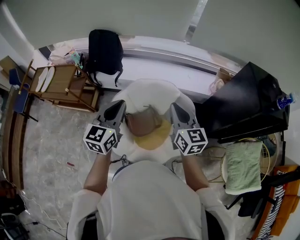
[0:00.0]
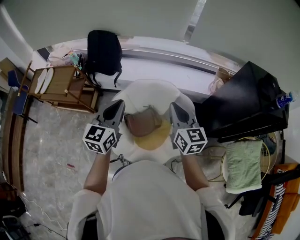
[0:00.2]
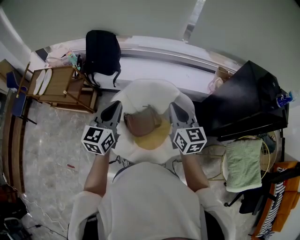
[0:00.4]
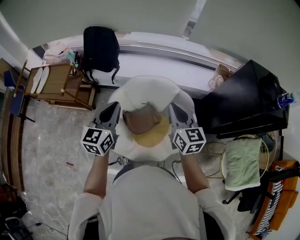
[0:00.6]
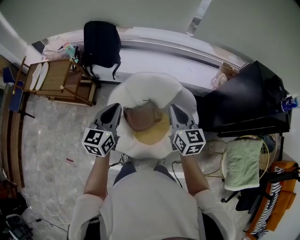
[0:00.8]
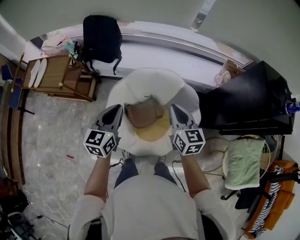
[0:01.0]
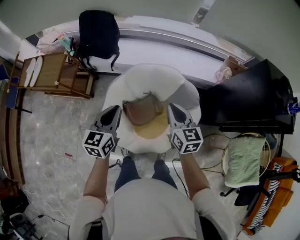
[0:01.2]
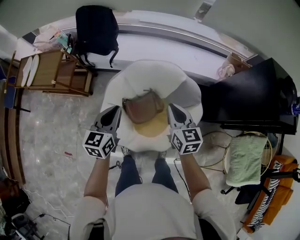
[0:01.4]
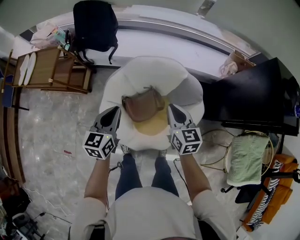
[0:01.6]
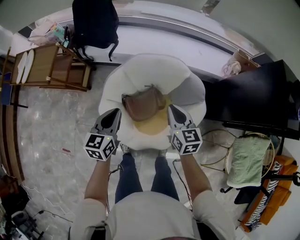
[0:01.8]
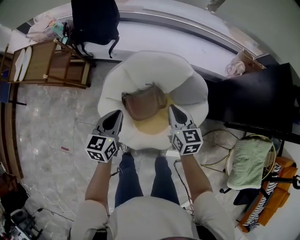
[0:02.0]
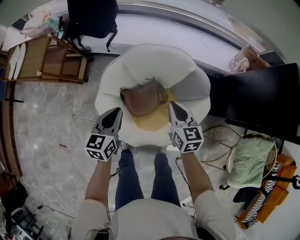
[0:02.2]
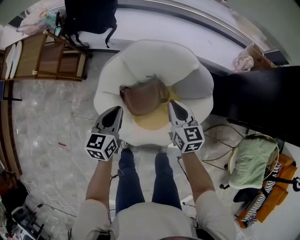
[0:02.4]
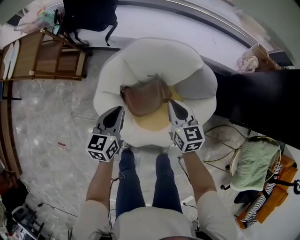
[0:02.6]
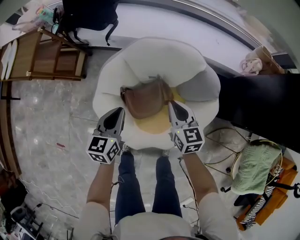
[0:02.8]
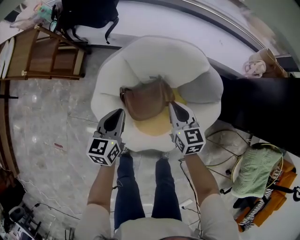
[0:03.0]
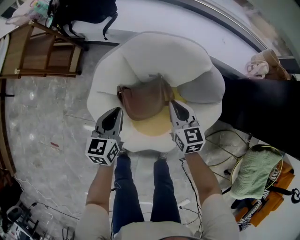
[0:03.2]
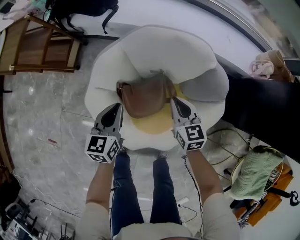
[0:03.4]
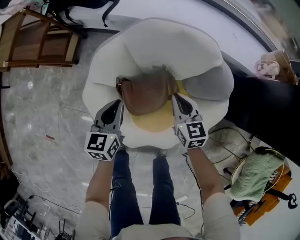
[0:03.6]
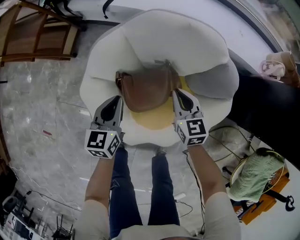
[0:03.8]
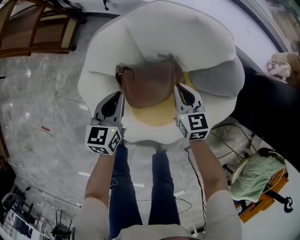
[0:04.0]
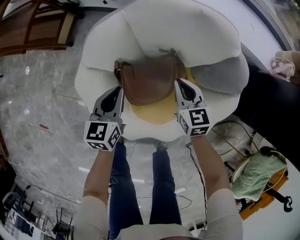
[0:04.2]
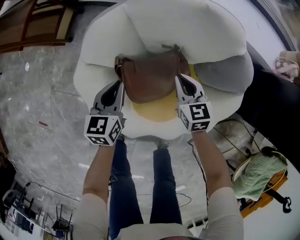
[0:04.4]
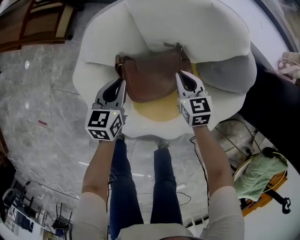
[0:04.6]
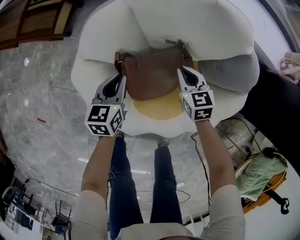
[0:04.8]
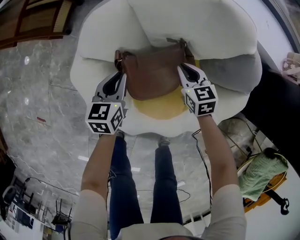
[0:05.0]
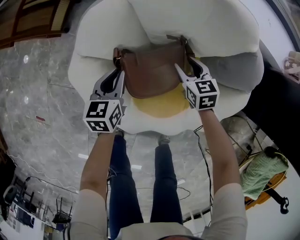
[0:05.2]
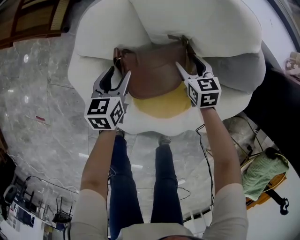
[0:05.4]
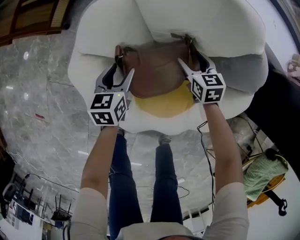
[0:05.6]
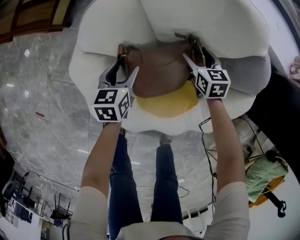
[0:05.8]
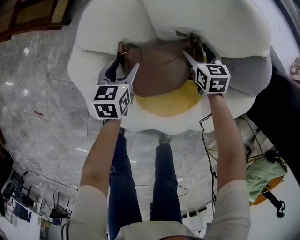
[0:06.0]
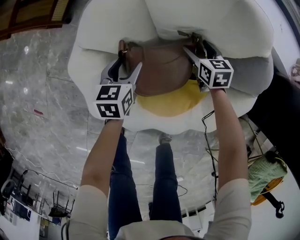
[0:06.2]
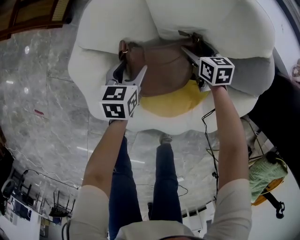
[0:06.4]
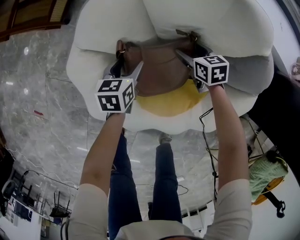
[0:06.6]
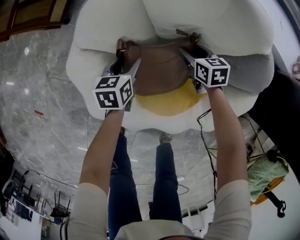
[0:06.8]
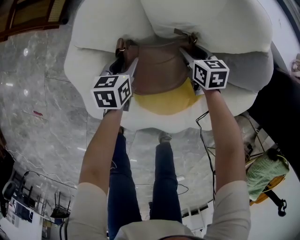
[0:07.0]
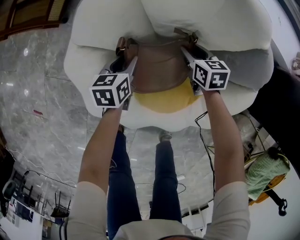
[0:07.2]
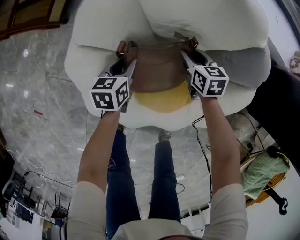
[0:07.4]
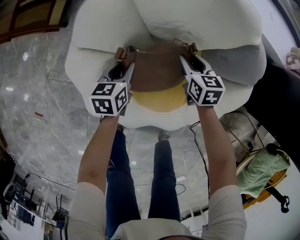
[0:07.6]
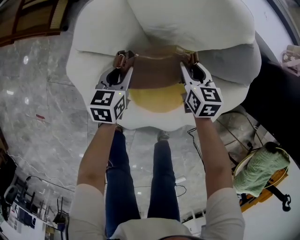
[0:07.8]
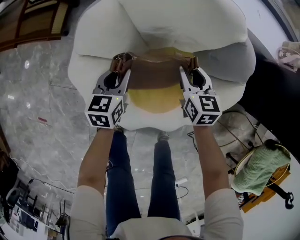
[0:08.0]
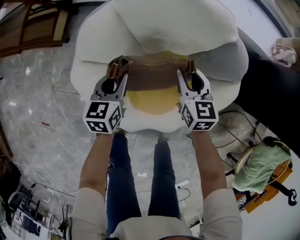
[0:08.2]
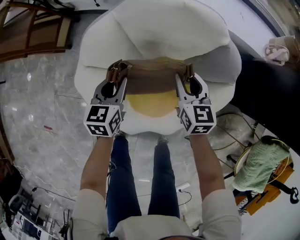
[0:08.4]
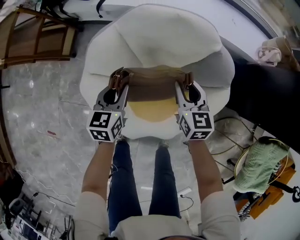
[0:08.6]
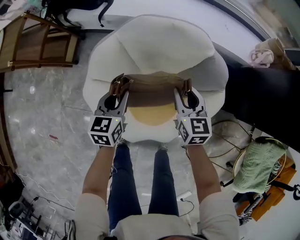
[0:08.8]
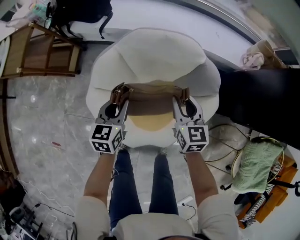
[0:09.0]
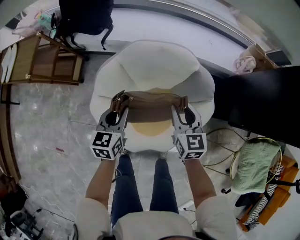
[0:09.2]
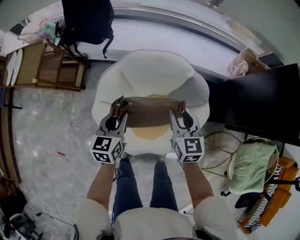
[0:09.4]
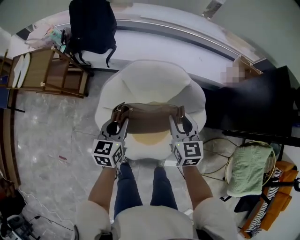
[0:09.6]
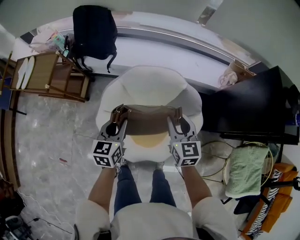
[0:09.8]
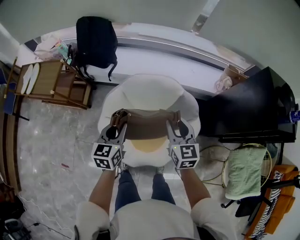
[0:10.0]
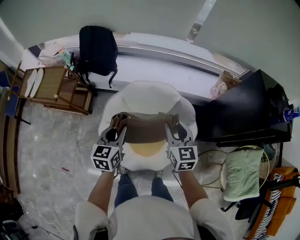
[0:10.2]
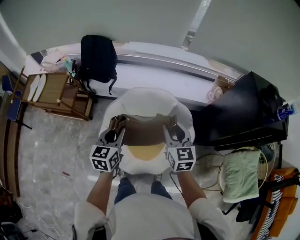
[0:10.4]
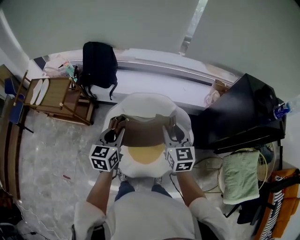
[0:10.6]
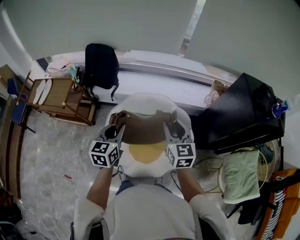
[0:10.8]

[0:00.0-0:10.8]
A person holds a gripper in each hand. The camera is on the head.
0:00.0 to 0:01.6: The two grippers go some 20 cm downward.
0:01.6 to 0:03.0: The two grippers go some 20 cm downward.
0:03.0 to 0:04.6: The grippers both shift downward by approximately 25 cm.
0:04.6 to 0:06.2: The left gripper heads downward, covering approximately 10 cm, and opens up. The right gripper goes some 15 cm downward and forward, and opens its fingers.
0:06.2 to 0:07.8: The left gripper ends up about 5 cm from where it was, and closes up. Meanwhile the right gripper heads upward and backward, covering approximately 10 cm, and closes.
0:07.8 to 0:09.2: The grippers both shift upward by roughly 30 cm. The right gripper rotates about 20 degrees.
0:09.2 to 0:10.8: The two grippers go about 30 cm upward.

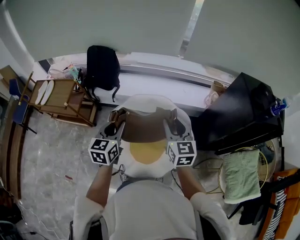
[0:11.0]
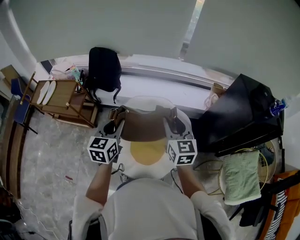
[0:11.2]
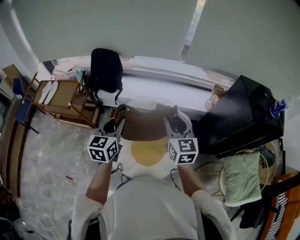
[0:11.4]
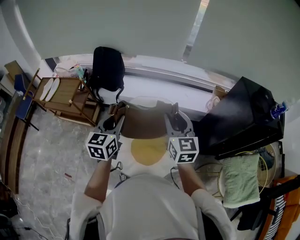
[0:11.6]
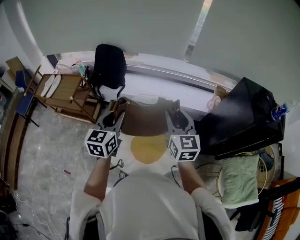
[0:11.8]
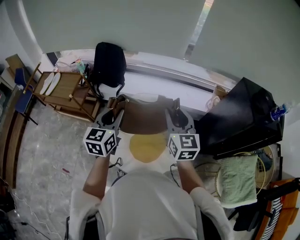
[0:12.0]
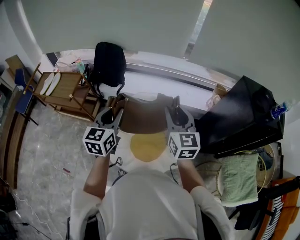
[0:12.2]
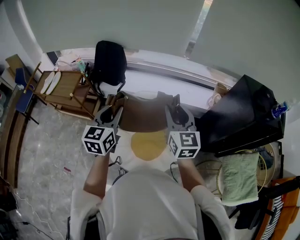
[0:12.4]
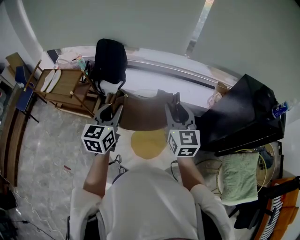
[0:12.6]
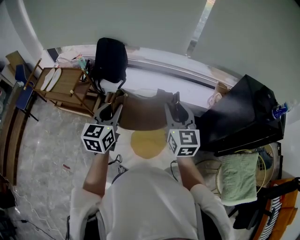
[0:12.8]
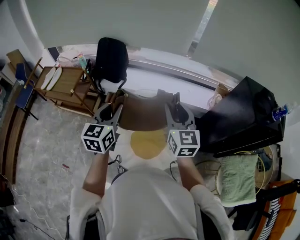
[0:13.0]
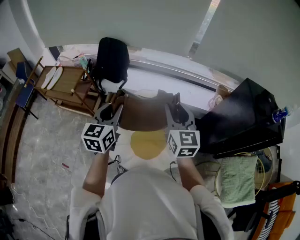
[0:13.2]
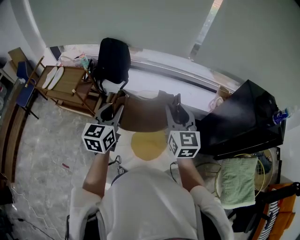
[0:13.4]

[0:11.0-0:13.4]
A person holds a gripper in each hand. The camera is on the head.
0:11.0 to 0:12.2: Both grippers move upward, approximately 5 cm.
0:12.2 to 0:13.4: The grippers stay close to where they were, moving slightly.

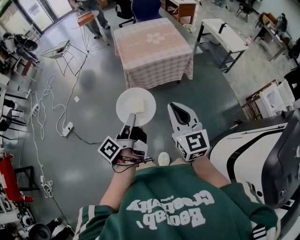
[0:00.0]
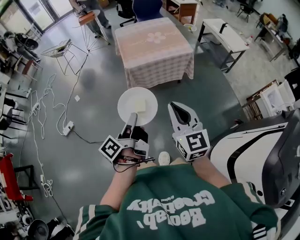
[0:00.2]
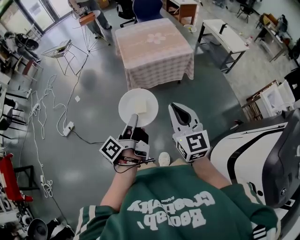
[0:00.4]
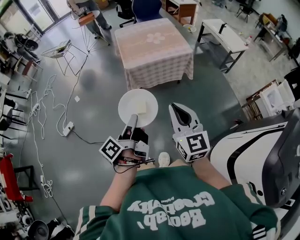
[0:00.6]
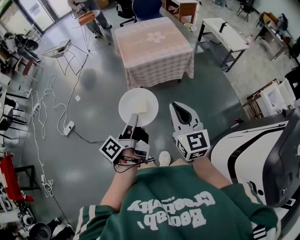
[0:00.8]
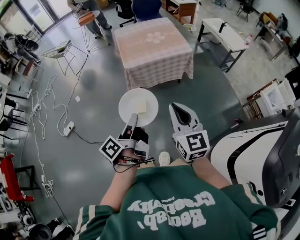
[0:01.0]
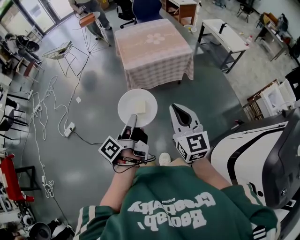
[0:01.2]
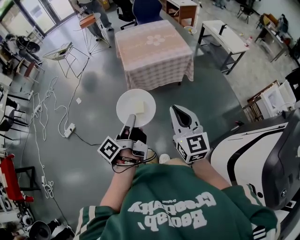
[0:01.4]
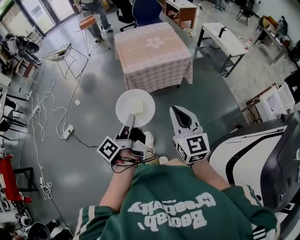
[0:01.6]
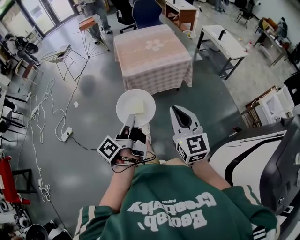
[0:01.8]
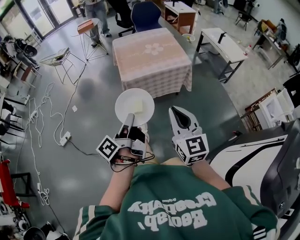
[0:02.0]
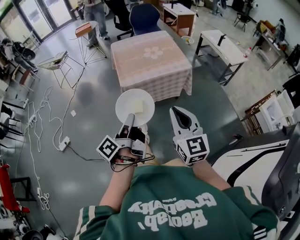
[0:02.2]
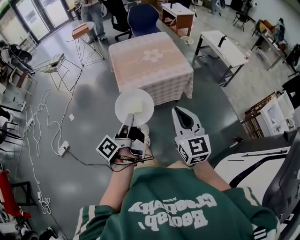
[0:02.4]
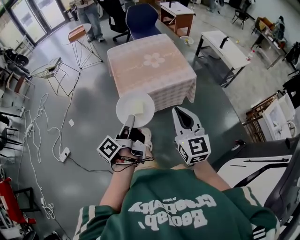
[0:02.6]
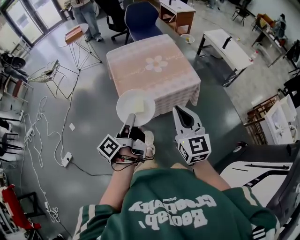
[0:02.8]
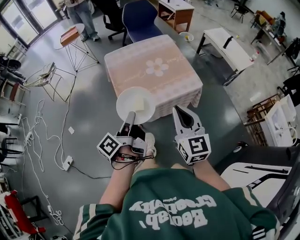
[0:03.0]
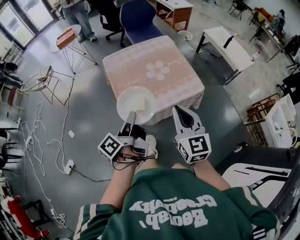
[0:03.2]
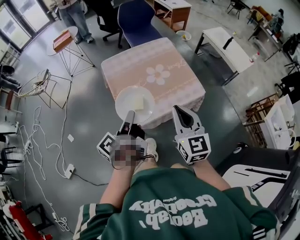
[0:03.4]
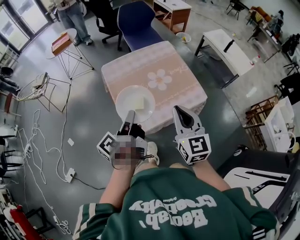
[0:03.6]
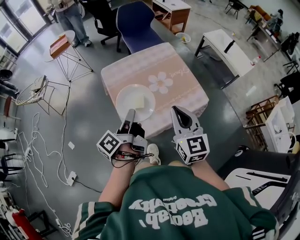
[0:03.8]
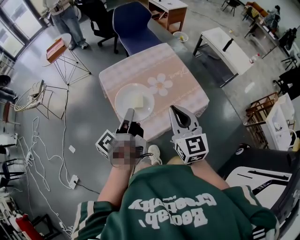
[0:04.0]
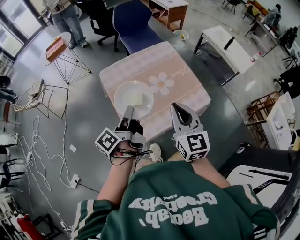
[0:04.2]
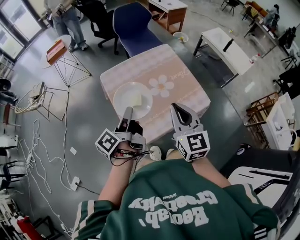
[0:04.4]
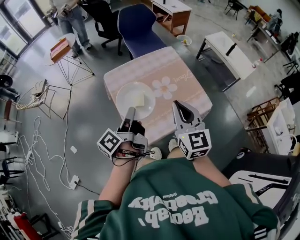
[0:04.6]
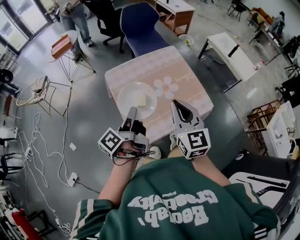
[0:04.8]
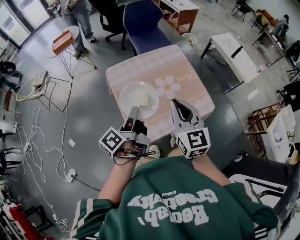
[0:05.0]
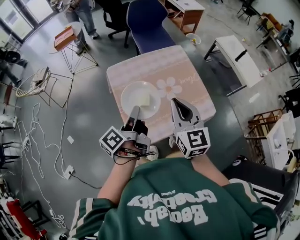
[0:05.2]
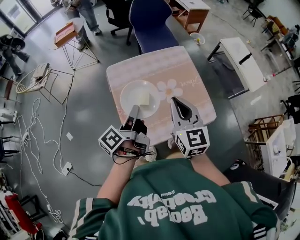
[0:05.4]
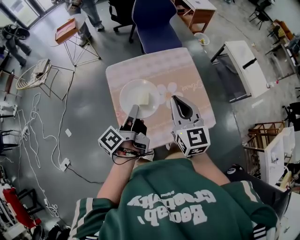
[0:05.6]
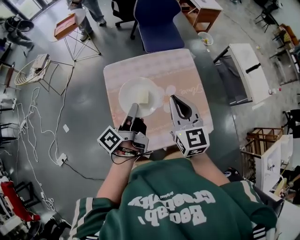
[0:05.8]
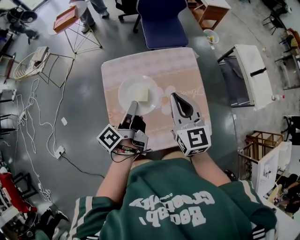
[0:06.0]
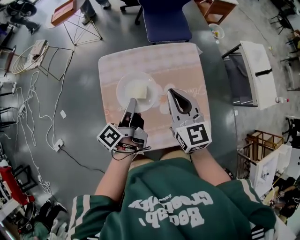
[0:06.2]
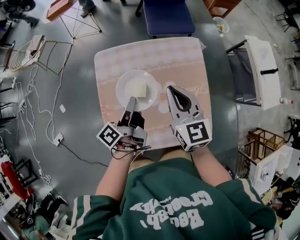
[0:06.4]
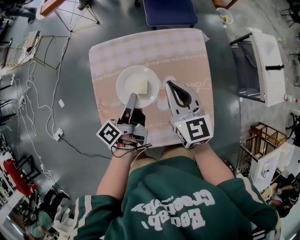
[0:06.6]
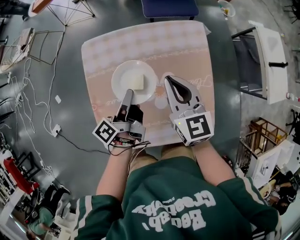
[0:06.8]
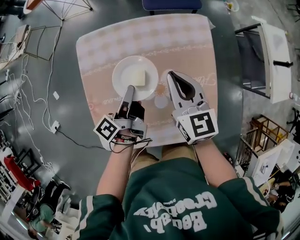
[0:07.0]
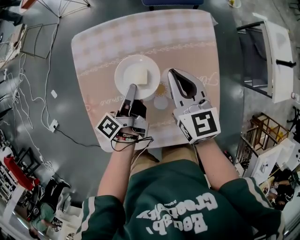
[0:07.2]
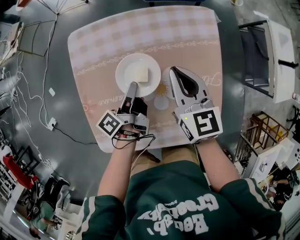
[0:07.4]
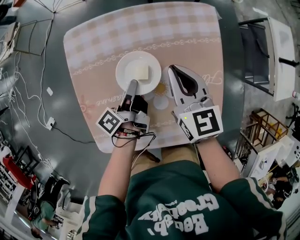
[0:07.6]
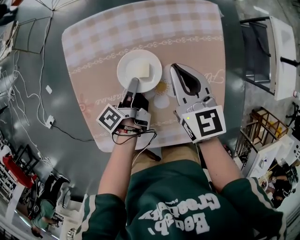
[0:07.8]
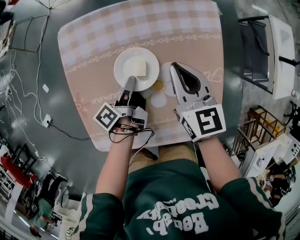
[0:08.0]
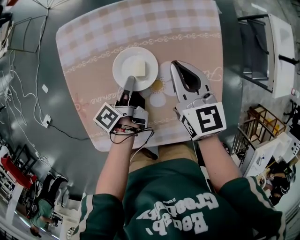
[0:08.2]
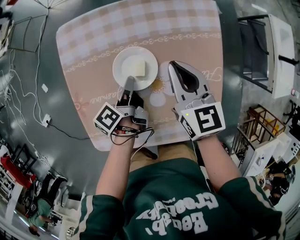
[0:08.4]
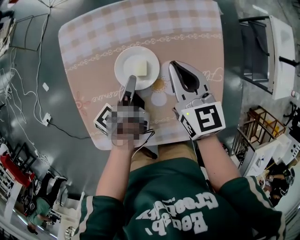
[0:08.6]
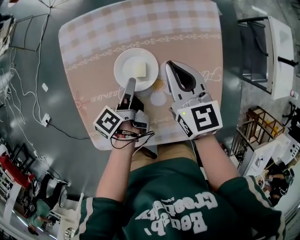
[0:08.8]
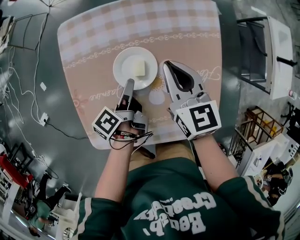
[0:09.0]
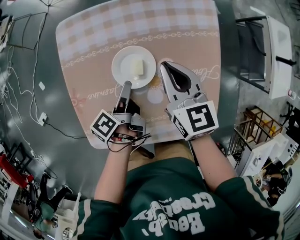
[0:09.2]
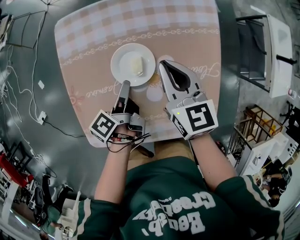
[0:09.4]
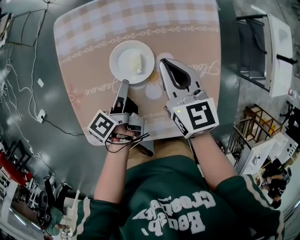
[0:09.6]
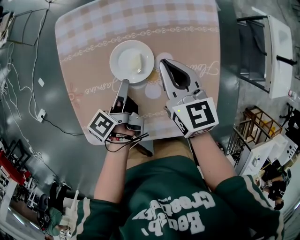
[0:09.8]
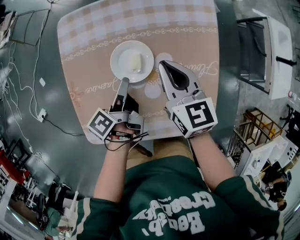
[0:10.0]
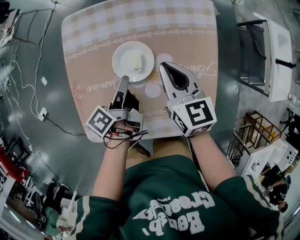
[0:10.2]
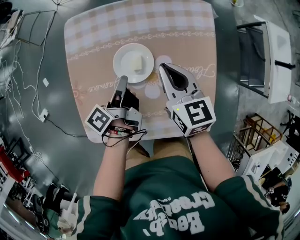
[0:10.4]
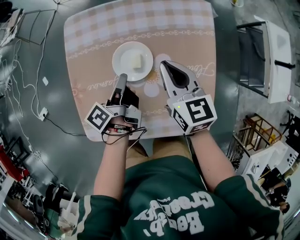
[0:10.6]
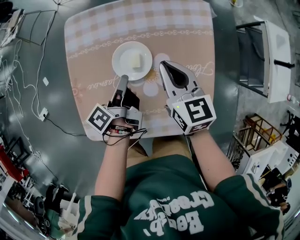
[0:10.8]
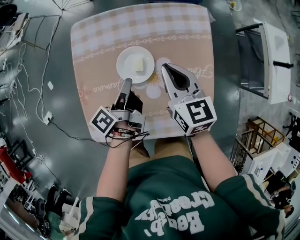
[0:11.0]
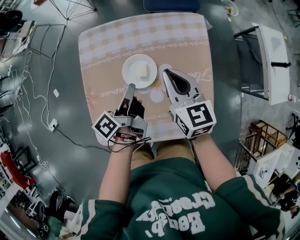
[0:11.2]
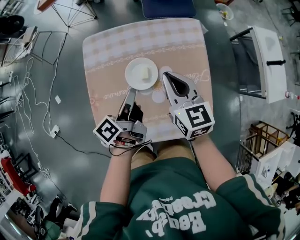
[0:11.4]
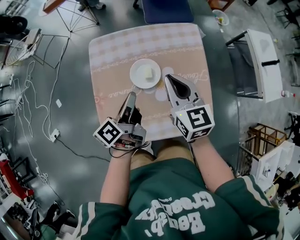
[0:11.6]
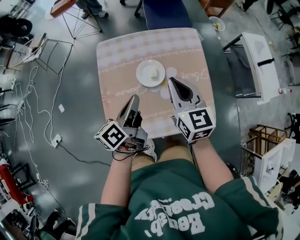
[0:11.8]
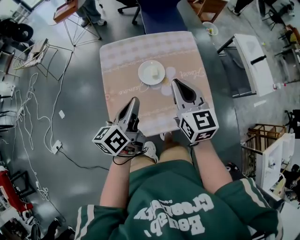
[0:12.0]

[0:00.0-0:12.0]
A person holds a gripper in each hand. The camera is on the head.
0:01.6 to 0:03.0: The right gripper ends up about 35 cm from where it was.
0:03.0 to 0:04.4: The right gripper shifts by roughly 20 cm.
0:04.4 to 0:06.0: The right gripper changes place by roughly 20 cm.
0:06.0 to 0:07.6: The right gripper moves downward, roughly 20 cm.
0:10.4 to 0:12.0: The right gripper moves upward, about 20 cm, and changes its angle by about 20 degrees.
